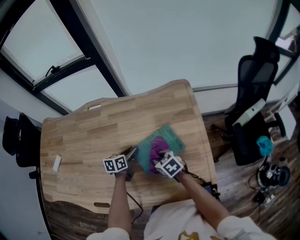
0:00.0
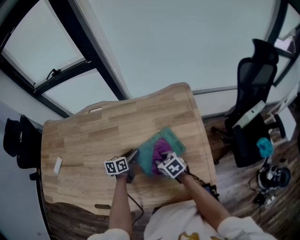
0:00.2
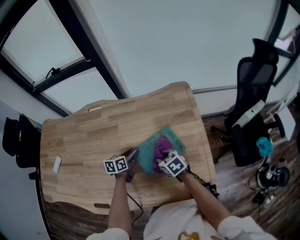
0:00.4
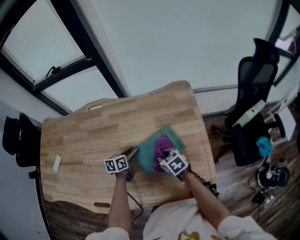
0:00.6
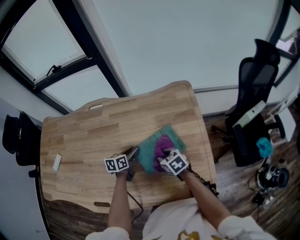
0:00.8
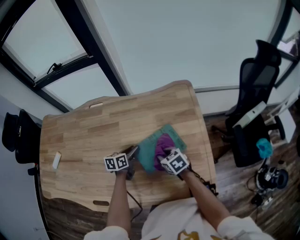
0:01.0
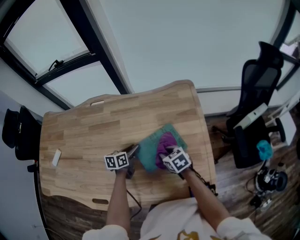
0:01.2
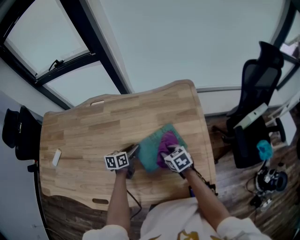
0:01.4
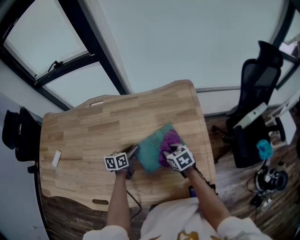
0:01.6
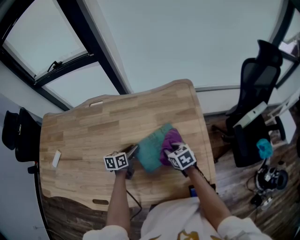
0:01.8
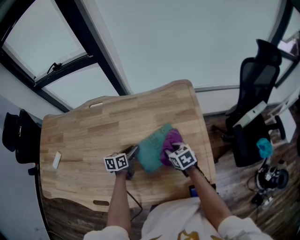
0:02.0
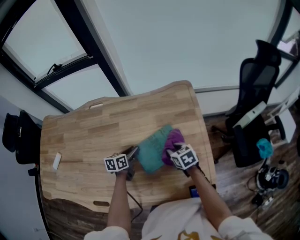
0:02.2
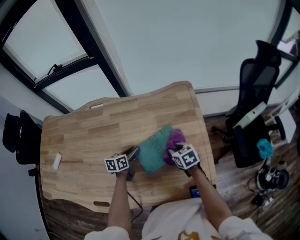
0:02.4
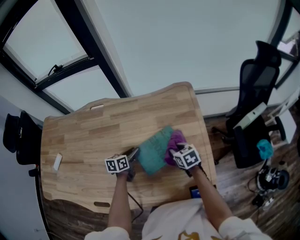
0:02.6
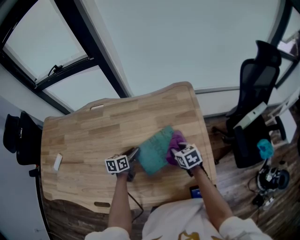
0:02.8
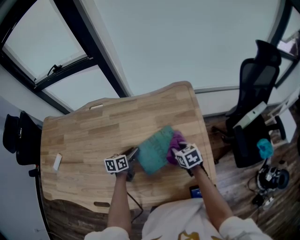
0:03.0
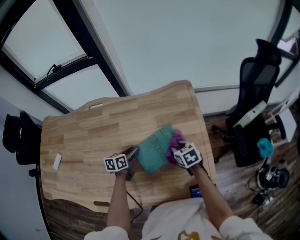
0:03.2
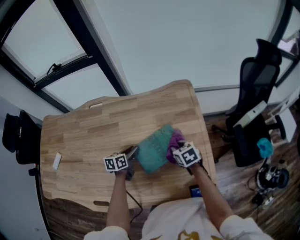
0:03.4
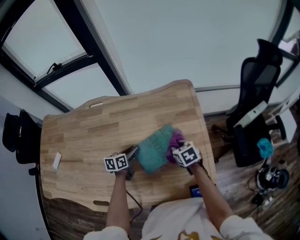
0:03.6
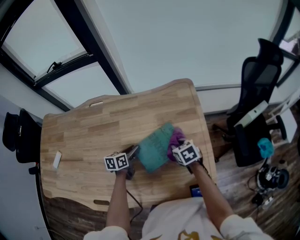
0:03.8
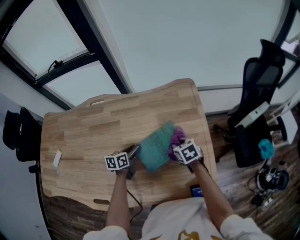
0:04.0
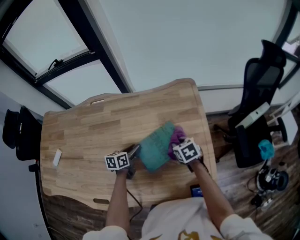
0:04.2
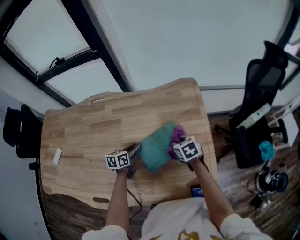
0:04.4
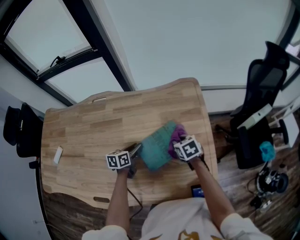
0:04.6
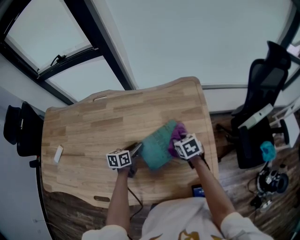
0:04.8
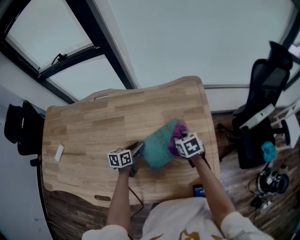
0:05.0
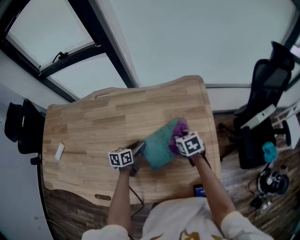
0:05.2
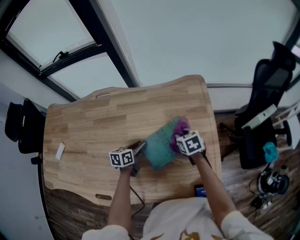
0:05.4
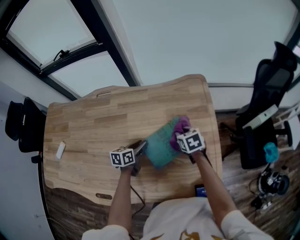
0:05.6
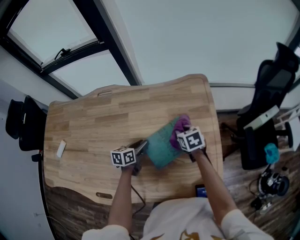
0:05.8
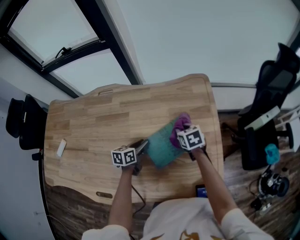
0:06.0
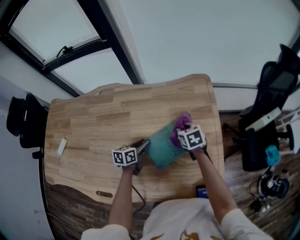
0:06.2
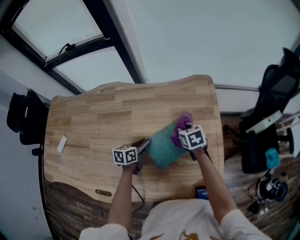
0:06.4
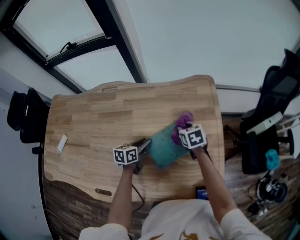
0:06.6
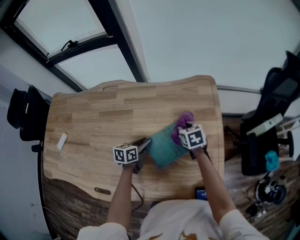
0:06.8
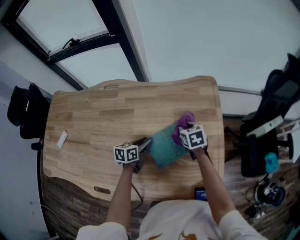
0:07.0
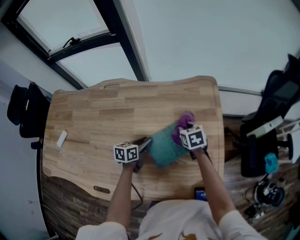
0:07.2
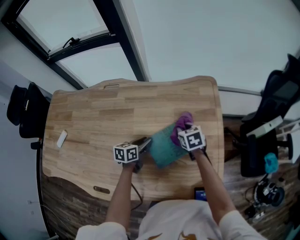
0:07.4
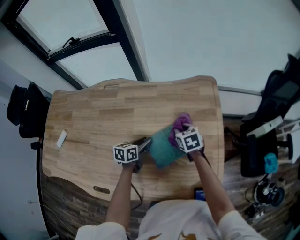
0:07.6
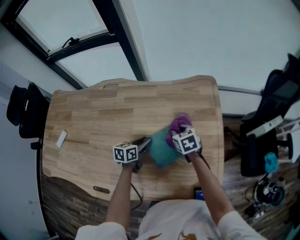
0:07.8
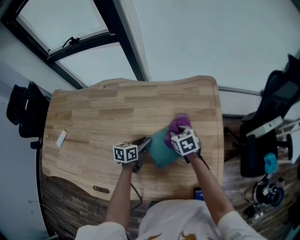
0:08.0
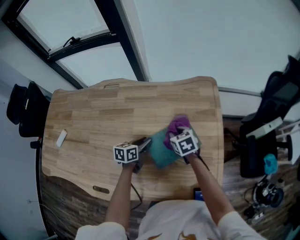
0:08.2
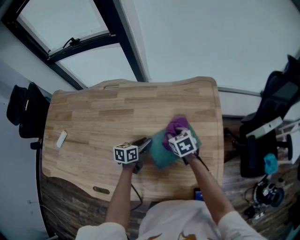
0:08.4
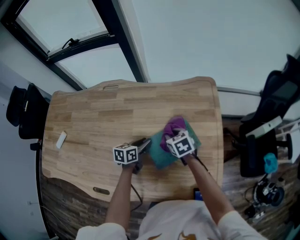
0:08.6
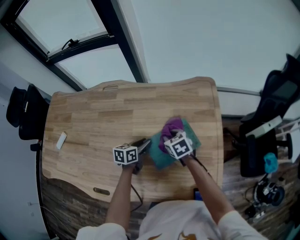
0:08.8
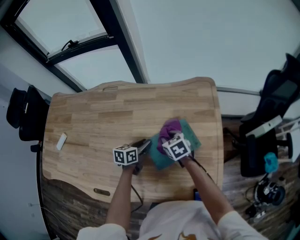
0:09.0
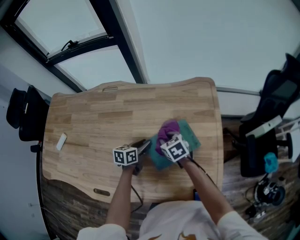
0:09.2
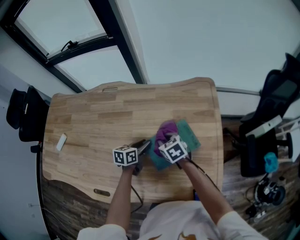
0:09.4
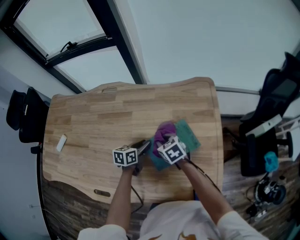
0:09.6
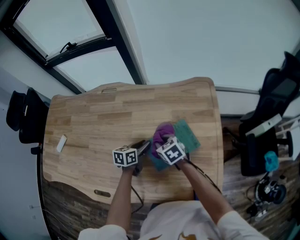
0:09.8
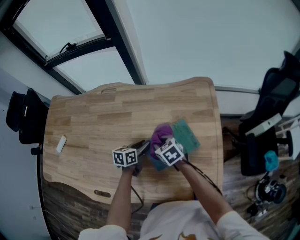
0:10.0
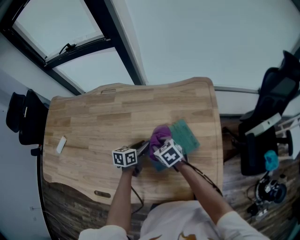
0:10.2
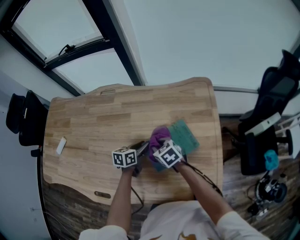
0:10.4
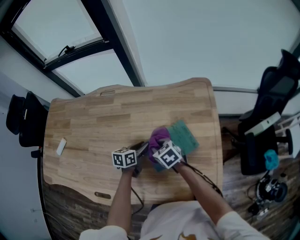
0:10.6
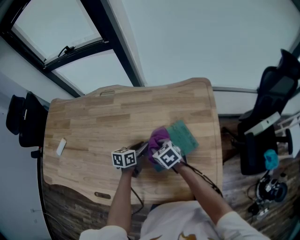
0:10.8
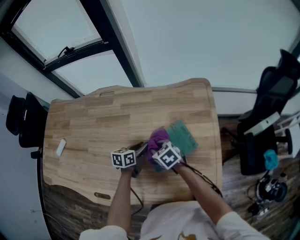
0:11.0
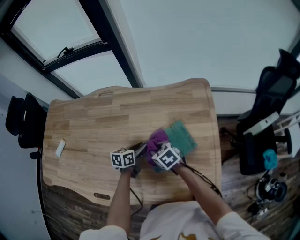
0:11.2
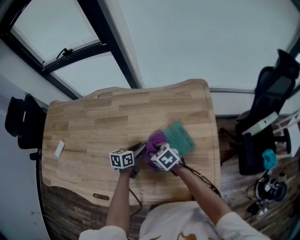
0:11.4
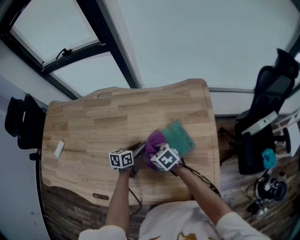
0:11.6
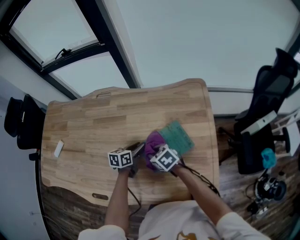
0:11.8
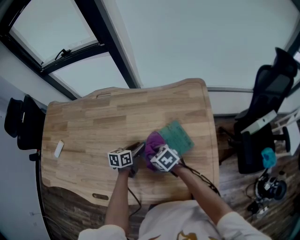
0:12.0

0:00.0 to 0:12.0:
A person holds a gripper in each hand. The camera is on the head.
0:00.0 to 0:01.6: The right gripper moves to the right, approximately 10 cm.
0:01.6 to 0:03.0: The right gripper moves to the right, roughly 5 cm.
0:03.0 to 0:04.4: There are only small adjustments of the grippers.
0:04.4 to 0:06.0: The right gripper goes approximately 5 cm forward.
0:06.0 to 0:07.6: The grippers make only small movements.
0:07.6 to 0:09.0: The right gripper travels to the left by about 5 cm.
0:09.0 to 0:10.4: The right gripper changes place by some 5 cm.
0:10.4 to 0:12.0: The grippers move only a little.

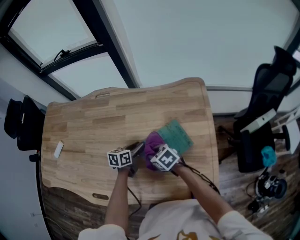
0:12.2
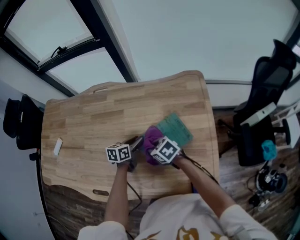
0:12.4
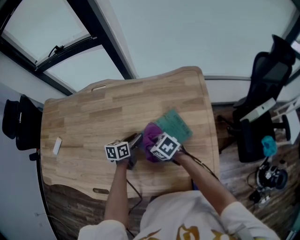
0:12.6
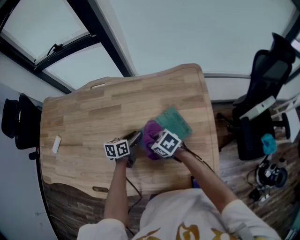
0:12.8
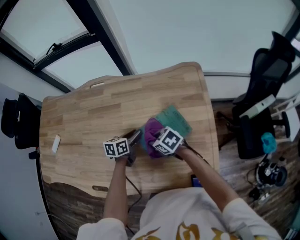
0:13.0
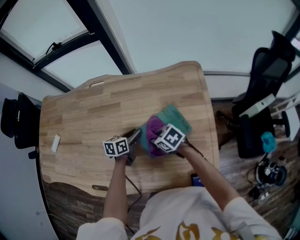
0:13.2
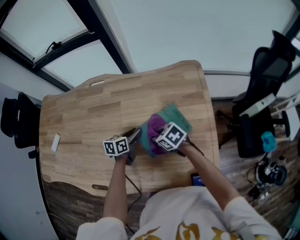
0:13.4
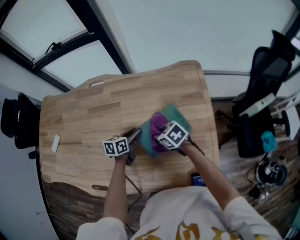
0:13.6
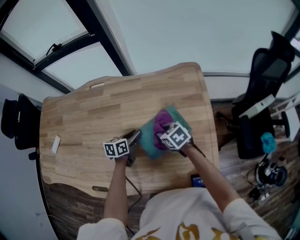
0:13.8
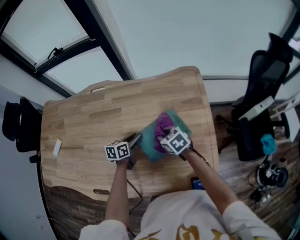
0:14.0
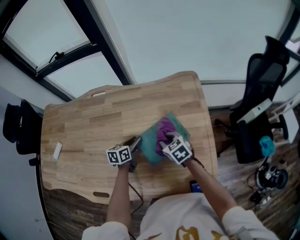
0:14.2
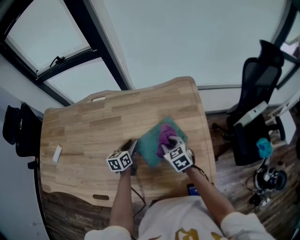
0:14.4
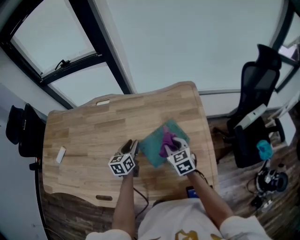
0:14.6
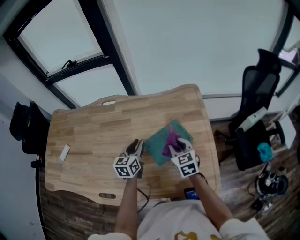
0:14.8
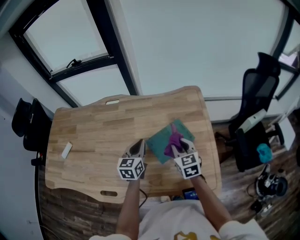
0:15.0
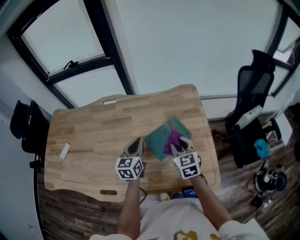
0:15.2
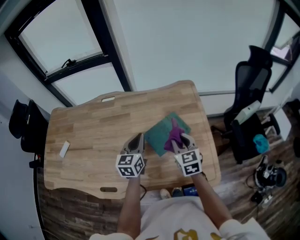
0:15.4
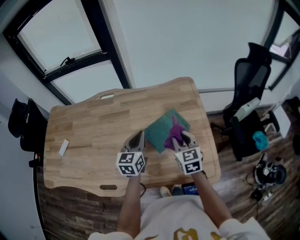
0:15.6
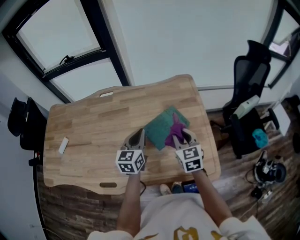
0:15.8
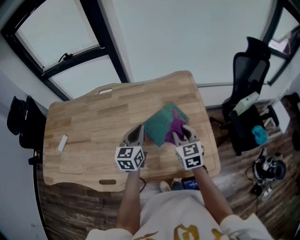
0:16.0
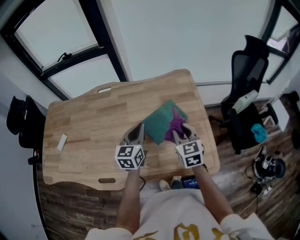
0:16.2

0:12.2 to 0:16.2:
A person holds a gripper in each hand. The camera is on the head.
0:12.2 to 0:13.6: The right gripper heads to the right, covering some 5 cm.
0:13.6 to 0:14.8: The left gripper moves upward, about 10 cm, and changes its angle by some 30 degrees, while the right gripper moves upward and to the right, approximately 10 cm, and changes its angle by approximately 40 degrees.
0:14.8 to 0:16.2: The left gripper is displaced upward and backward by some 10 cm, and closes, while the right gripper goes roughly 10 cm backward and upward.

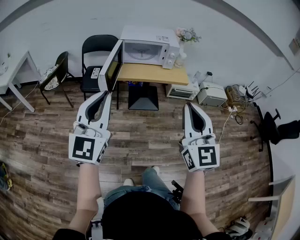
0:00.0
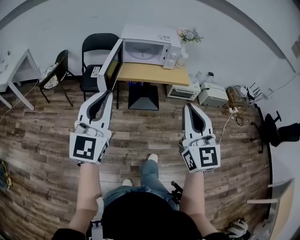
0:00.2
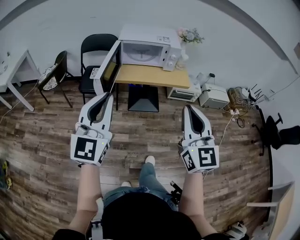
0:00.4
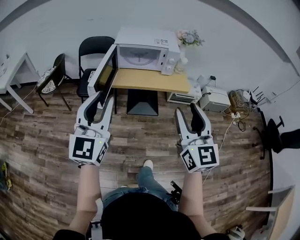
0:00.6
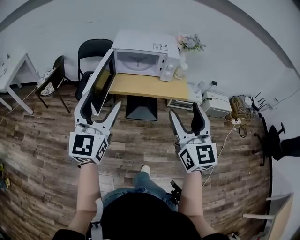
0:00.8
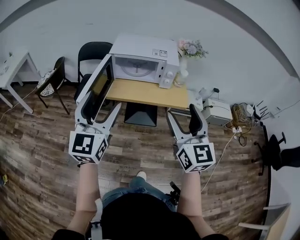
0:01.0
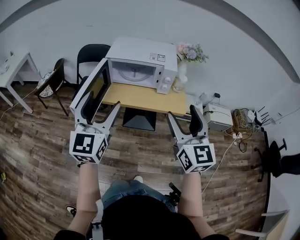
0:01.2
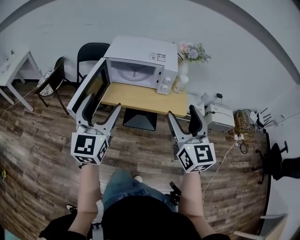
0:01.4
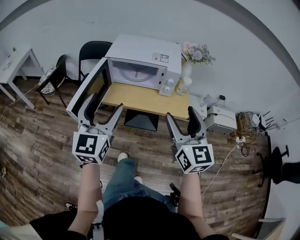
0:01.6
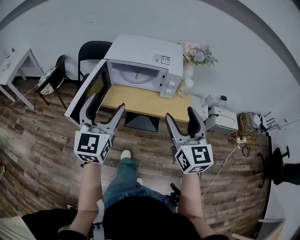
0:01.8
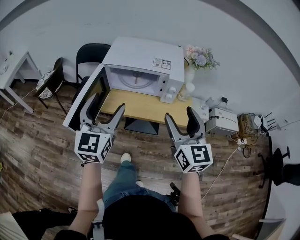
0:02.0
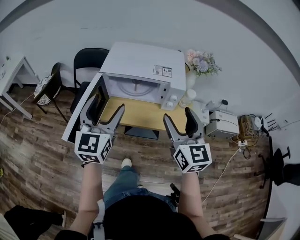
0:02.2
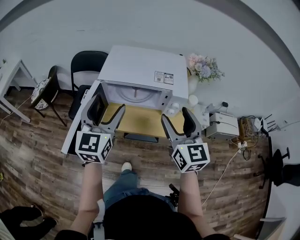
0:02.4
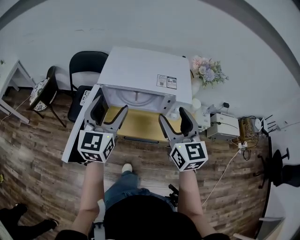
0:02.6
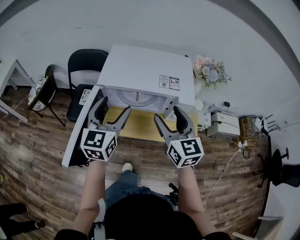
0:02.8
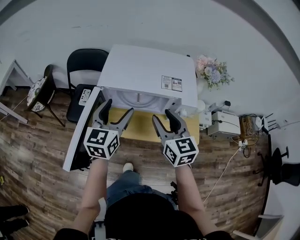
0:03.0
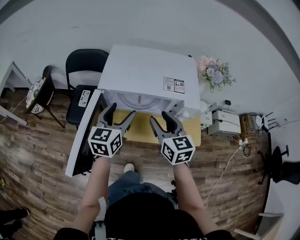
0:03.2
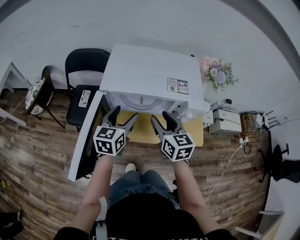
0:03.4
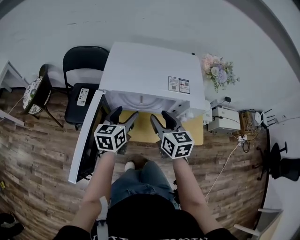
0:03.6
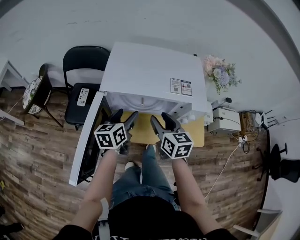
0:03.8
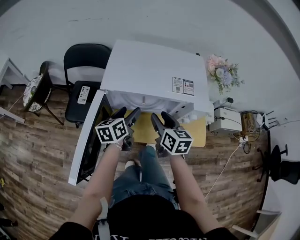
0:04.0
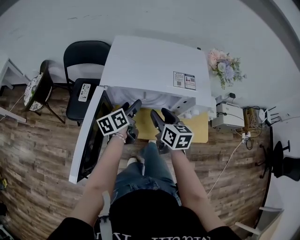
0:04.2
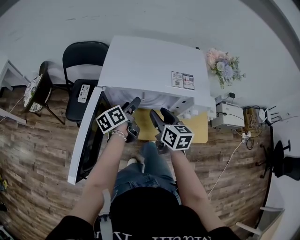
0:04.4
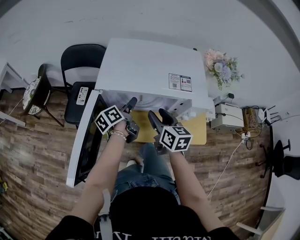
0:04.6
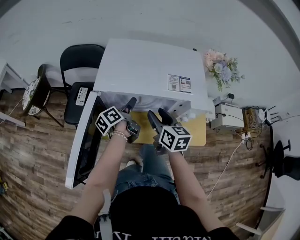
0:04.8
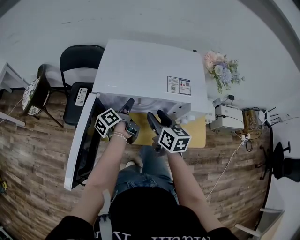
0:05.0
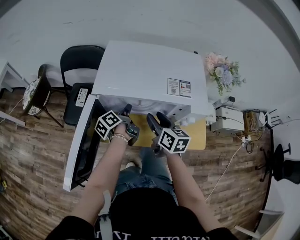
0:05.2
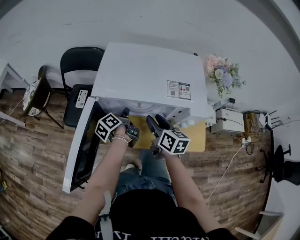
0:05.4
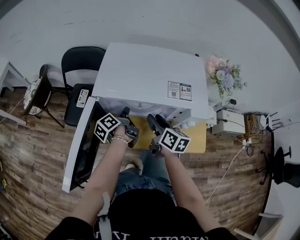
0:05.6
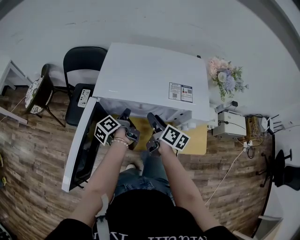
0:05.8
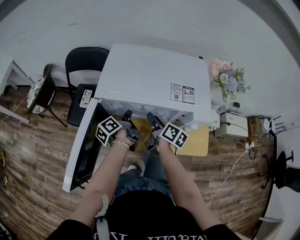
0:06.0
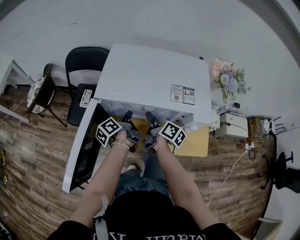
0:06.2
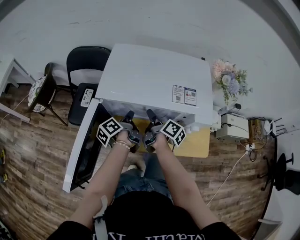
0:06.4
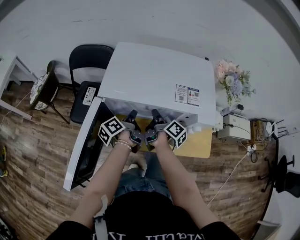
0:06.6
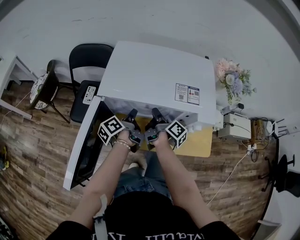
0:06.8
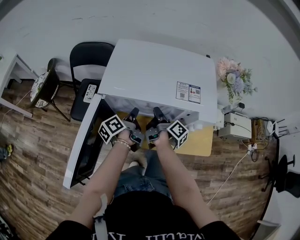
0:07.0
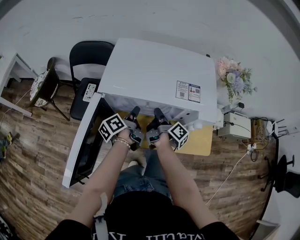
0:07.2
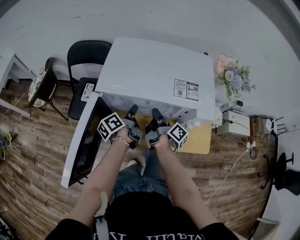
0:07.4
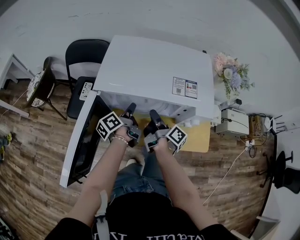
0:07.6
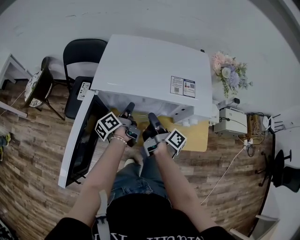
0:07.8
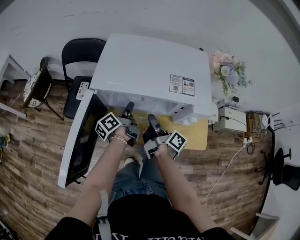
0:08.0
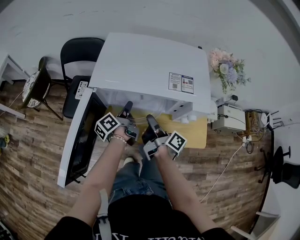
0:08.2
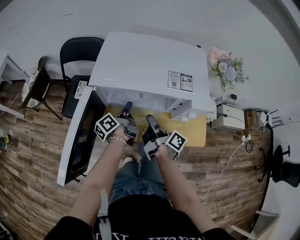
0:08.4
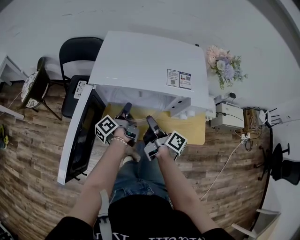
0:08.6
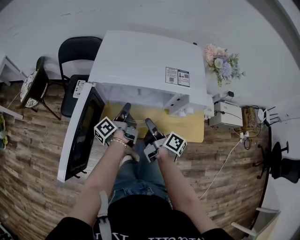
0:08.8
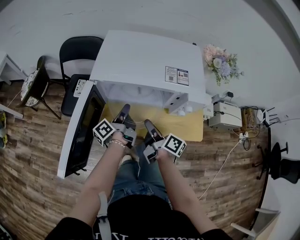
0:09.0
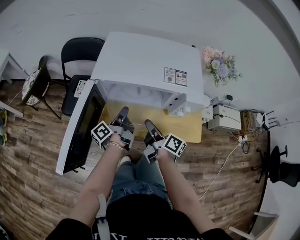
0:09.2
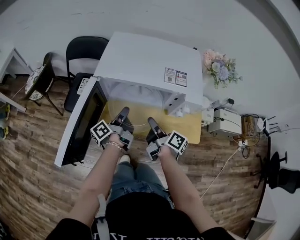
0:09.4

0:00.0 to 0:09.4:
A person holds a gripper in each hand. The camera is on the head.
0:00.0 to 0:01.6: Both grippers travel together forward and to the right, about 35 cm. The right gripper opens. The left gripper opens its fingers.
0:01.6 to 0:03.2: The two grippers go roughly 30 cm forward and downward. The right gripper rotates roughly 20 degrees, and closes its fingers. The left gripper rotates about 30 degrees.
0:03.2 to 0:04.8: The left gripper travels downward and forward by some 20 cm, and rotates around the line of its fingers by approximately 60 degrees, counterclockwise from behind. Meanwhile the right gripper goes some 10 cm downward and forward.
0:04.8 to 0:06.2: The right gripper moves downward, roughly 5 cm, and rolls clockwise, seen from behind, by roughly 40 degrees; the left gripper closes.
0:06.2 to 0:07.8: The right gripper changes its angle by some 20 degrees.
0:07.8 to 0:09.4: The grippers both shift backward by about 10 cm.
